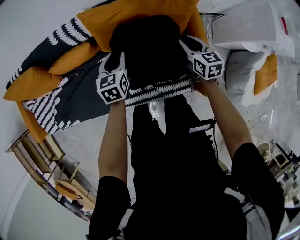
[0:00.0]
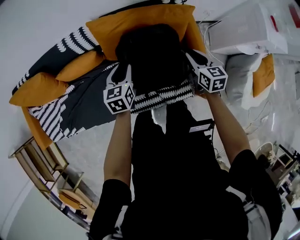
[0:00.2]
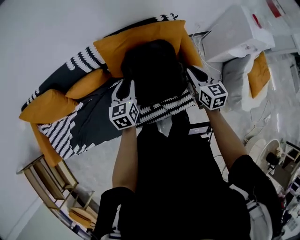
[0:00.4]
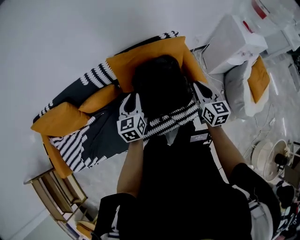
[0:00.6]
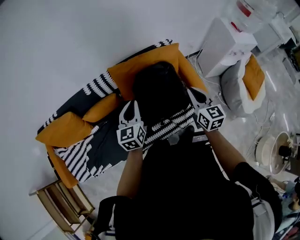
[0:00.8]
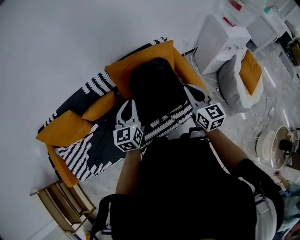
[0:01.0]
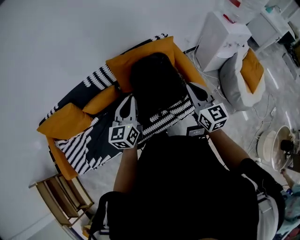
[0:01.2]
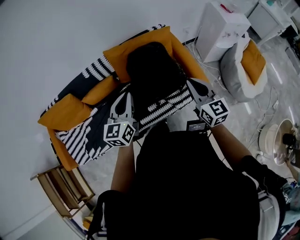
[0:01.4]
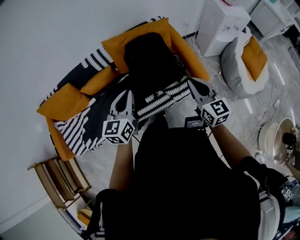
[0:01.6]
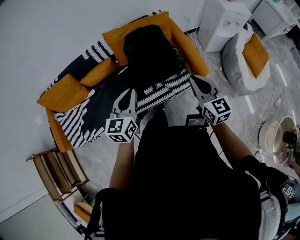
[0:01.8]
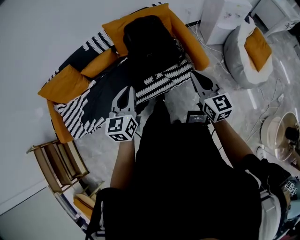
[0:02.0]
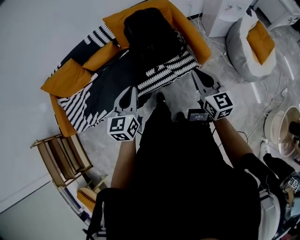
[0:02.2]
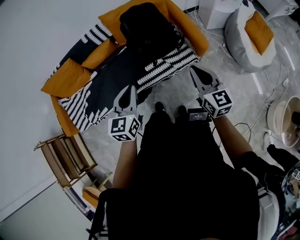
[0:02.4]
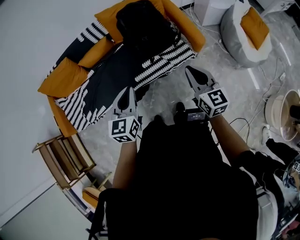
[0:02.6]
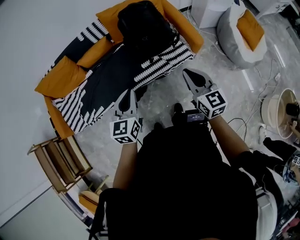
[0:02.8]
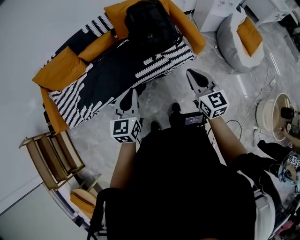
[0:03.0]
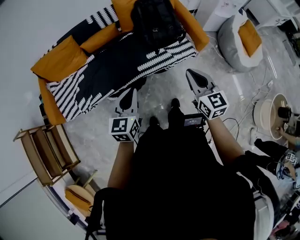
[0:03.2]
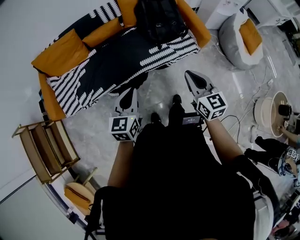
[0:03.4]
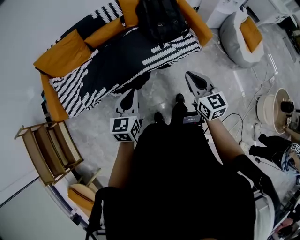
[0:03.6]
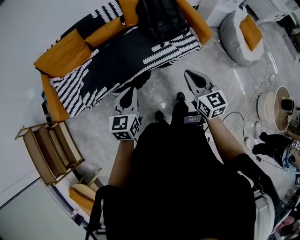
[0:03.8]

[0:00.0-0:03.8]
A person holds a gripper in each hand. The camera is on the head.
0:00.0 to 0:01.2: Both grippers move upward and backward, some 35 cm. The right gripper rotates about 30 degrees. The left gripper rotates some 30 degrees, and closes its fingers.
0:01.2 to 0:02.6: Both grippers travel together backward, roughly 25 cm.
0:02.6 to 0:03.8: Both grippers travel together to the left and backward, about 20 cm.

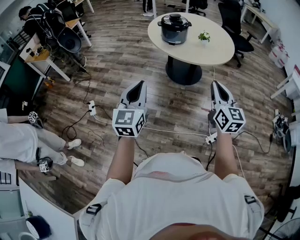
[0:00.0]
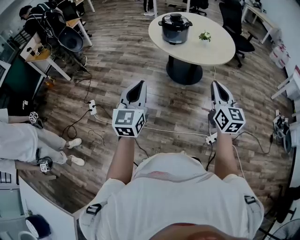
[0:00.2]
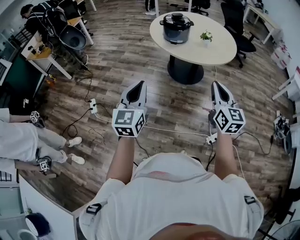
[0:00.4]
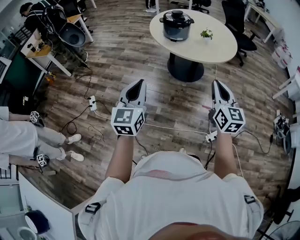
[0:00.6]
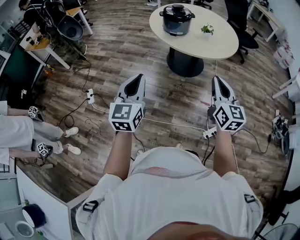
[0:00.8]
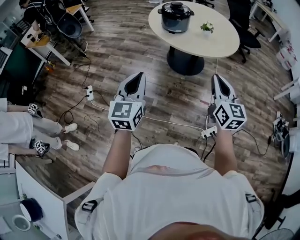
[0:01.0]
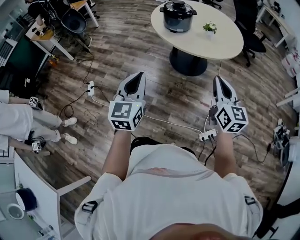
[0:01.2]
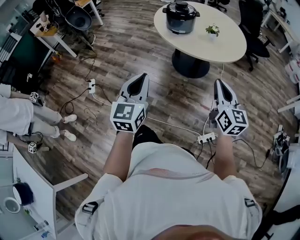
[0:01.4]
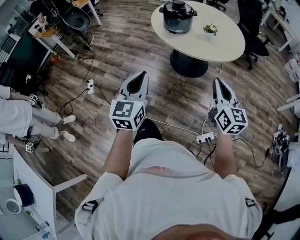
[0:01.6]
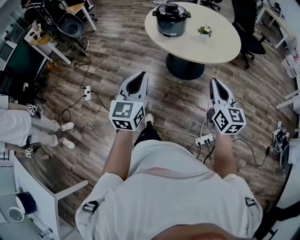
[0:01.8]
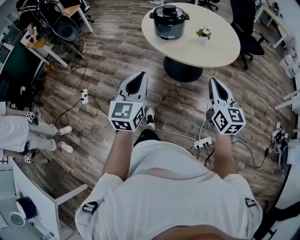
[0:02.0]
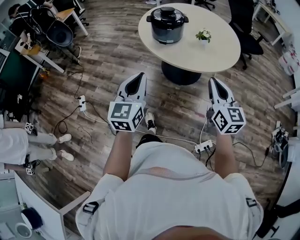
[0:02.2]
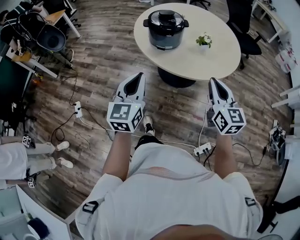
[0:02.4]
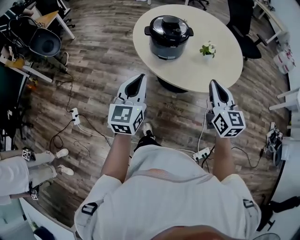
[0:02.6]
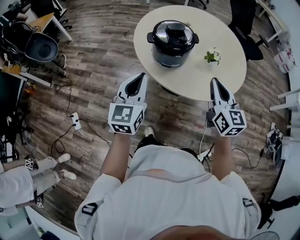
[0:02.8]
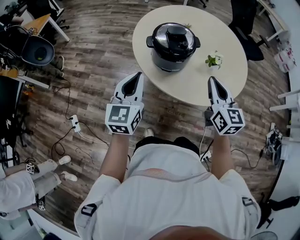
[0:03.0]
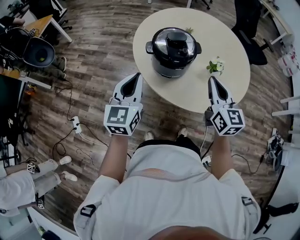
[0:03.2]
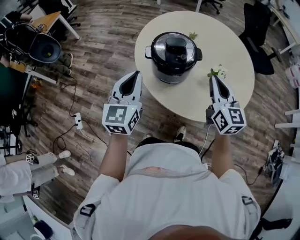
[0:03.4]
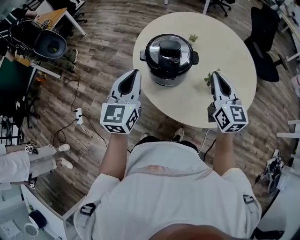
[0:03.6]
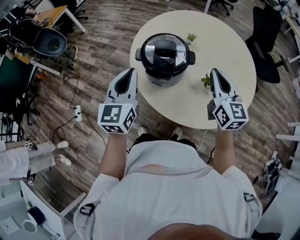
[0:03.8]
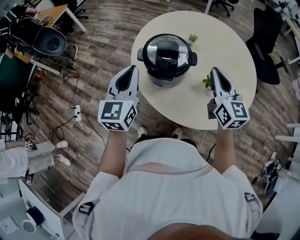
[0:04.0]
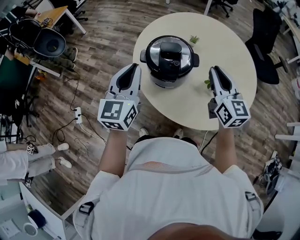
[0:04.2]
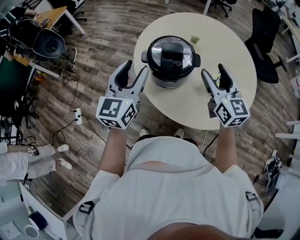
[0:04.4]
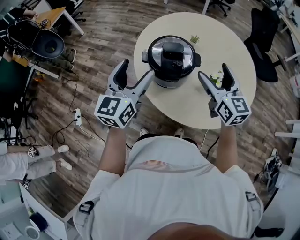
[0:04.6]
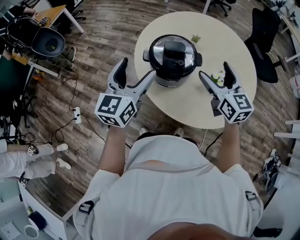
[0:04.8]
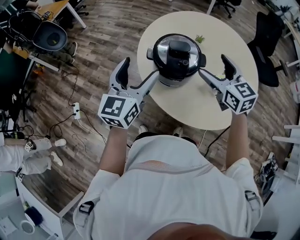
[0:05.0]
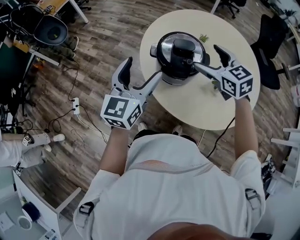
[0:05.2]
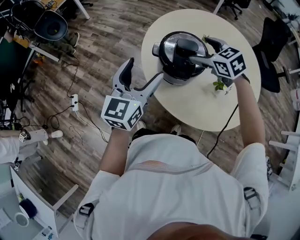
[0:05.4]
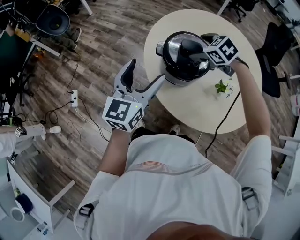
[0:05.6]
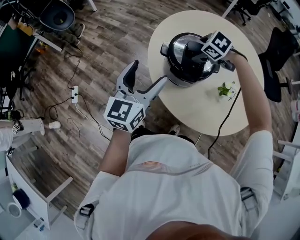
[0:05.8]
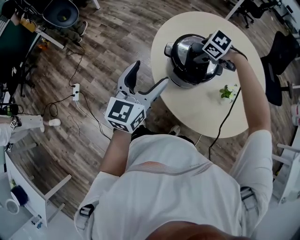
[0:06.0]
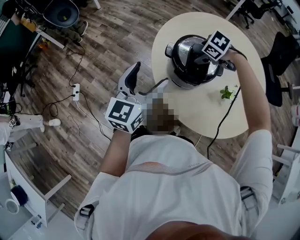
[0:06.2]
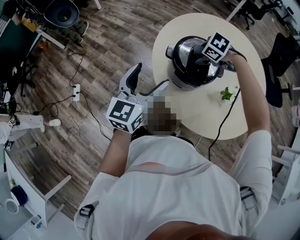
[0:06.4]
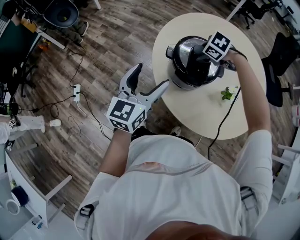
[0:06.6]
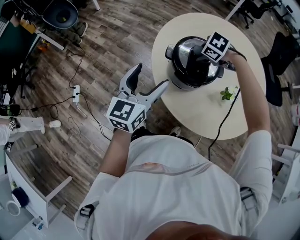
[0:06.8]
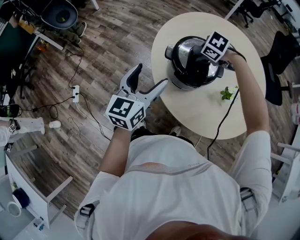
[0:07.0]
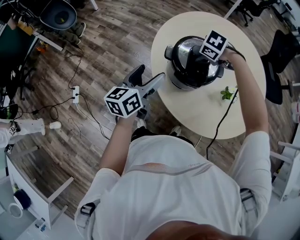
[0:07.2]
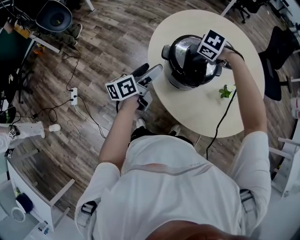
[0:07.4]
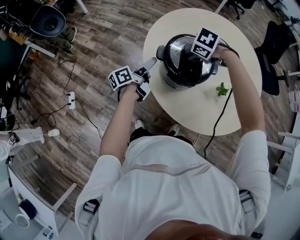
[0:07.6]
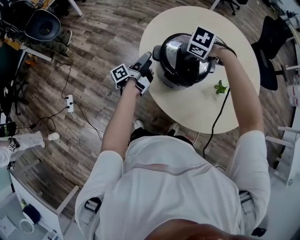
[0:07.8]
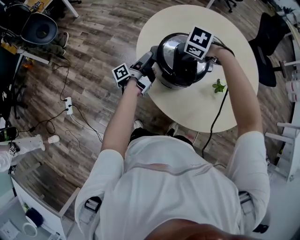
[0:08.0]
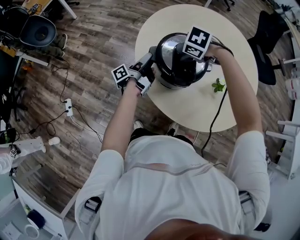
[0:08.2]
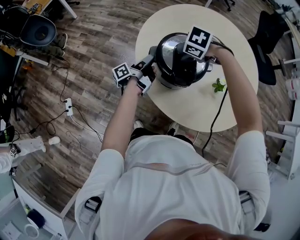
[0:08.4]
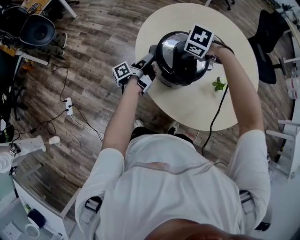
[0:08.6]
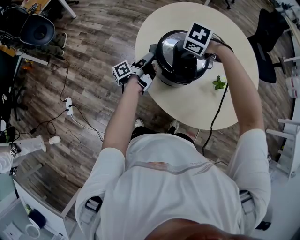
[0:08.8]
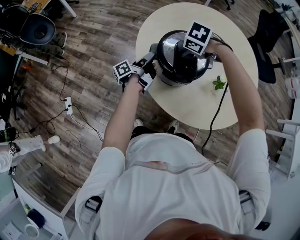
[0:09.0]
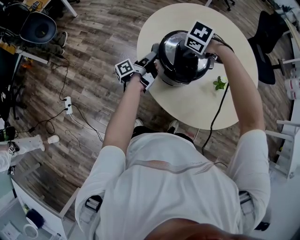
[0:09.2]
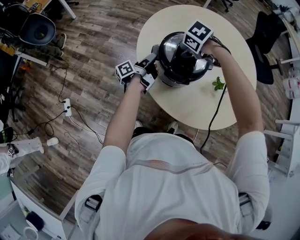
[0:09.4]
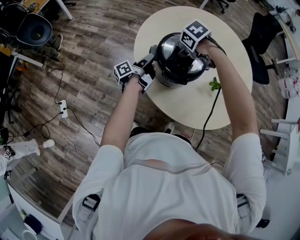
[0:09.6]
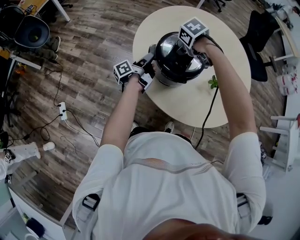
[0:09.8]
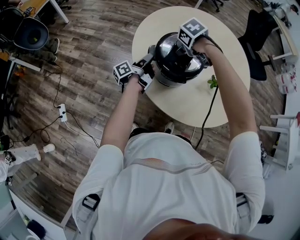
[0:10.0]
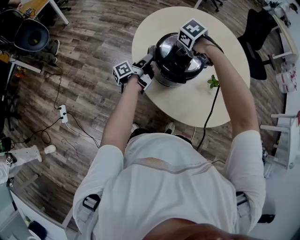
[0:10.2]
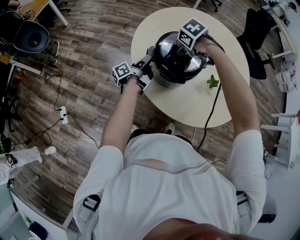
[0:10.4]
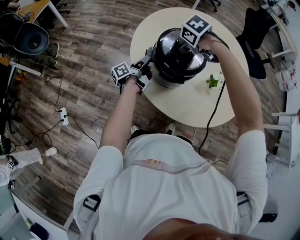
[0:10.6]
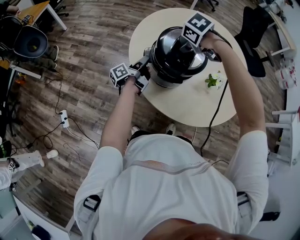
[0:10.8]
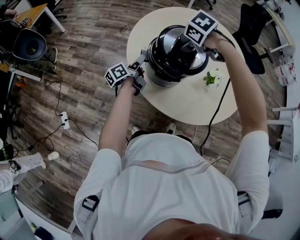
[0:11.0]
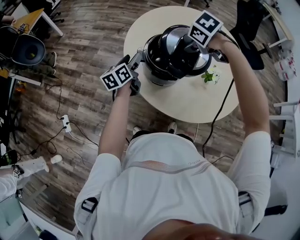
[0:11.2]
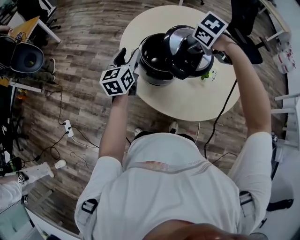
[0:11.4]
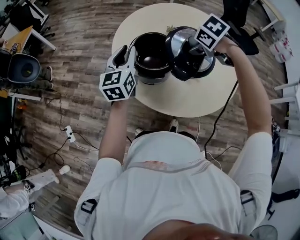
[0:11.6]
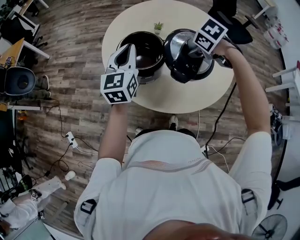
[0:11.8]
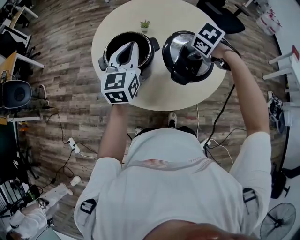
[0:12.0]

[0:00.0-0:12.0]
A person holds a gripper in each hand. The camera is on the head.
0:00.0 to 0:01.6: The right gripper shifts about 15 cm to the right and forward, while the left gripper is displaced to the right by about 15 cm.
0:01.6 to 0:03.0: The pair of grippers is taken forward, approximately 50 cm.
0:03.0 to 0:04.4: The grippers both shift forward and to the right by some 15 cm. The right gripper opens; the left gripper opens.
0:04.4 to 0:06.0: The left gripper ends up roughly 5 cm from where it was, and opens up. The right gripper shifts by some 25 cm, tips its fingers downward by approximately 70 degrees, and opens.
0:06.0 to 0:07.6: The left gripper heads downward, covering some 20 cm, and rotates around the line of its fingers by approximately 60 degrees, counterclockwise from behind. Meanwhile the right gripper closes its fingers.
0:07.6 to 0:09.0: The left gripper shifts by some 5 cm, swivels some 20 degrees, and closes its fingers.
0:09.0 to 0:10.4: The right gripper rotates roughly 30 degrees.
0:10.4 to 0:12.0: The right gripper ends up approximately 30 cm from where it was; the left gripper goes roughly 20 cm upward, rotates around the line of its fingers by approximately 80 degrees, clockwise from behind, and opens and closes again.

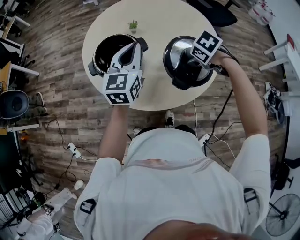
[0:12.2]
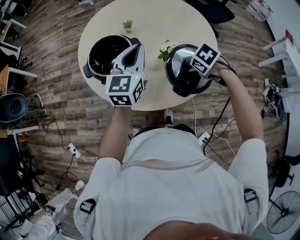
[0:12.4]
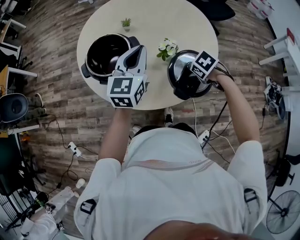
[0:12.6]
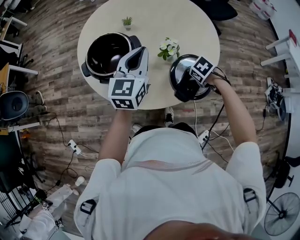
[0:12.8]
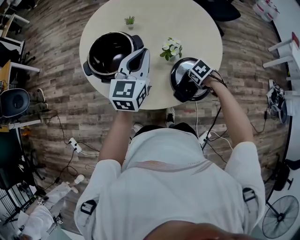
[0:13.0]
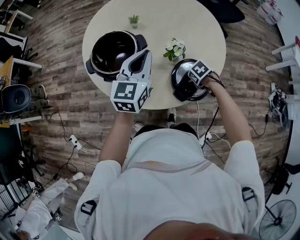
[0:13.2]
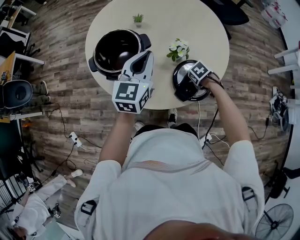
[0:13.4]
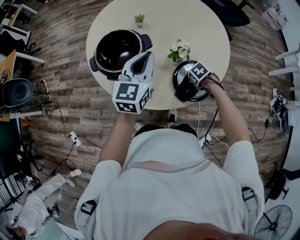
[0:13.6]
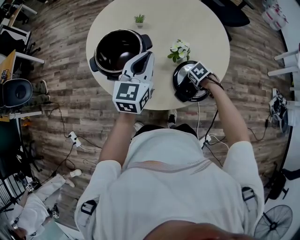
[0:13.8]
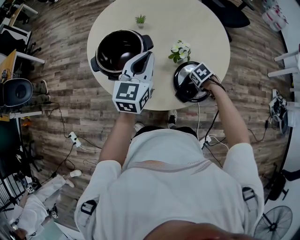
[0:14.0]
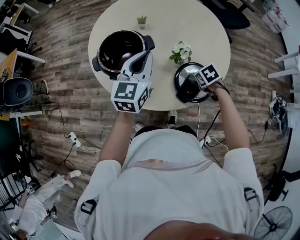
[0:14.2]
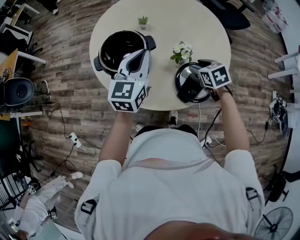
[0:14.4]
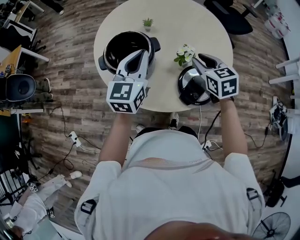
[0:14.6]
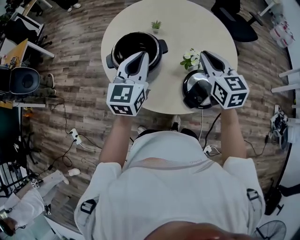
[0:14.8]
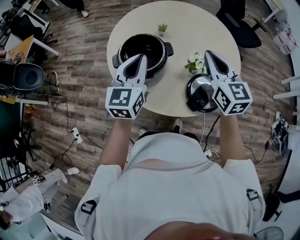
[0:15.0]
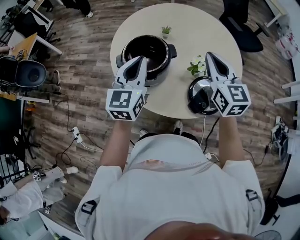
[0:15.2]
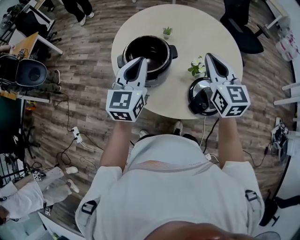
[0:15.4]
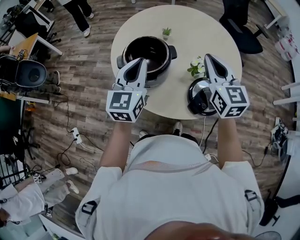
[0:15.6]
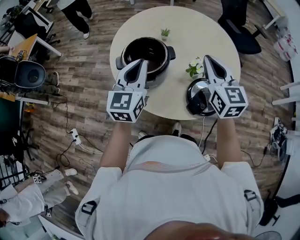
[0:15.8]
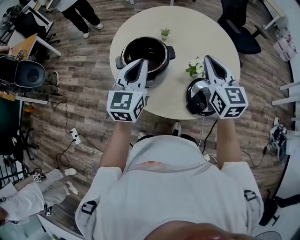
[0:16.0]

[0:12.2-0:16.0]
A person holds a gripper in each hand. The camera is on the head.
0:12.2 to 0:13.4: The right gripper travels downward by roughly 20 cm, while the left gripper moves about 5 cm.
0:13.4 to 0:14.8: The left gripper shifts by about 10 cm; the right gripper goes roughly 35 cm upward, angles its fingers upward, by approximately 70 degrees, and closes its fingers.
0:14.8 to 0:16.0: The left gripper moves about 5 cm; the right gripper moves some 5 cm.

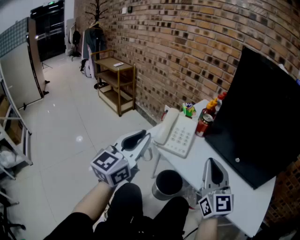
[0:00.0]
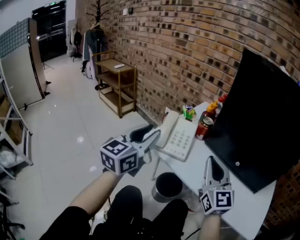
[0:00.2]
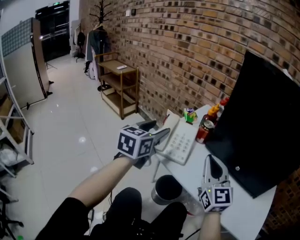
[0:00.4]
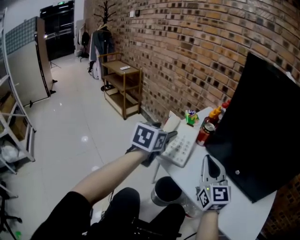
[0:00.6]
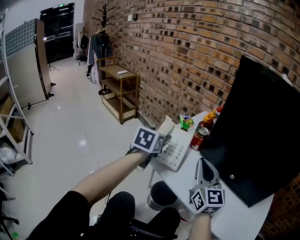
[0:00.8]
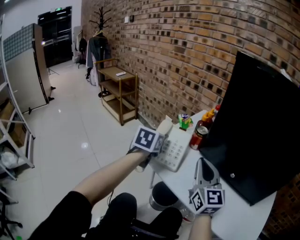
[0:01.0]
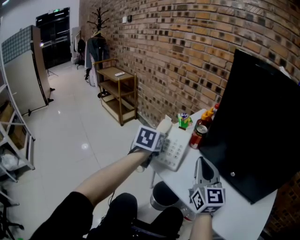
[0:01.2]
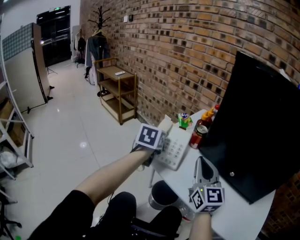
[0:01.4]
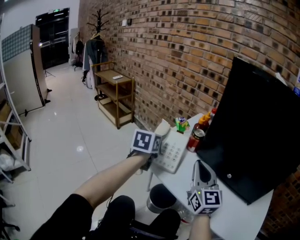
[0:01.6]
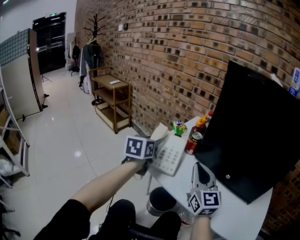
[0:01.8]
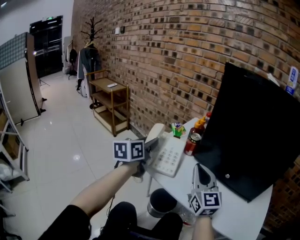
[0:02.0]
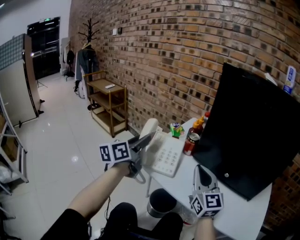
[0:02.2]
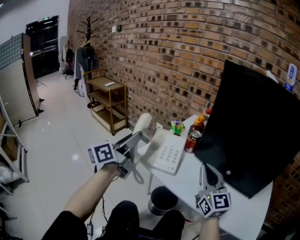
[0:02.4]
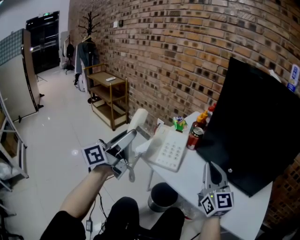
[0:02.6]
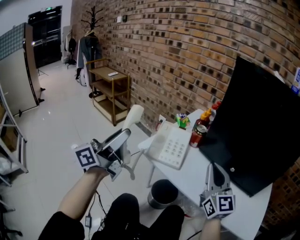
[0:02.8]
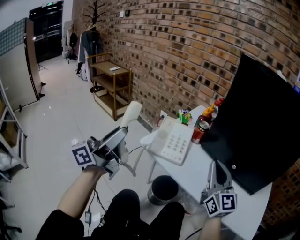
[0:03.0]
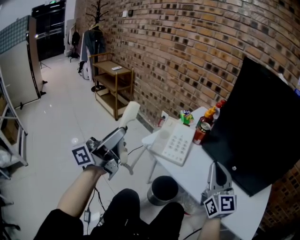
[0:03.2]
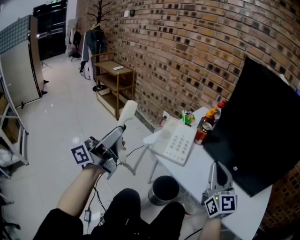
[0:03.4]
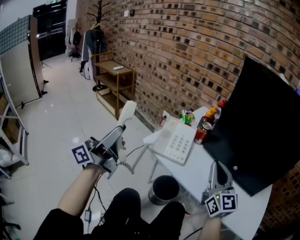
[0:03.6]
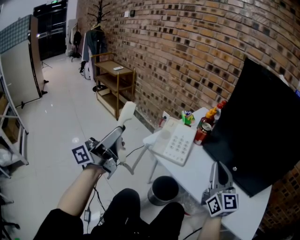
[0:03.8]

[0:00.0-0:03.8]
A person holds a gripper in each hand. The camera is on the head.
0:00.0 to 0:01.2: The right gripper moves forward, approximately 10 cm; the left gripper goes approximately 20 cm forward and downward, tips its fingers downward by roughly 40 degrees, and opens up.
0:01.2 to 0:02.6: The left gripper shifts about 20 cm backward, upward and to the left, and angles its fingers upward, by some 50 degrees.
0:02.6 to 0:03.8: The left gripper moves backward, roughly 5 cm.
